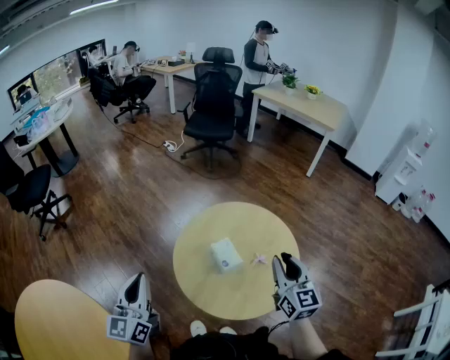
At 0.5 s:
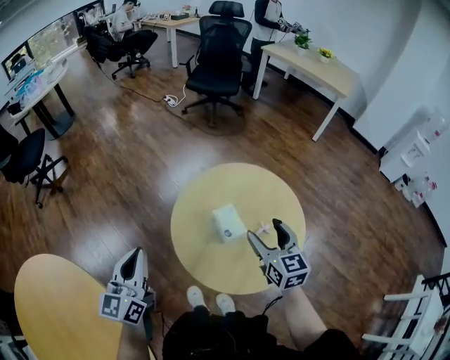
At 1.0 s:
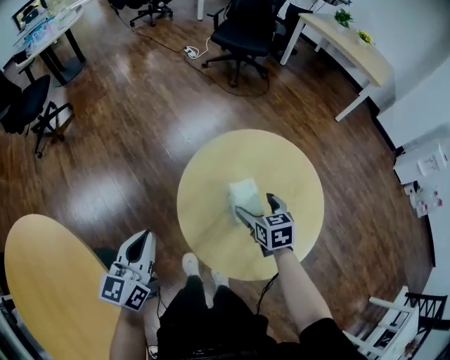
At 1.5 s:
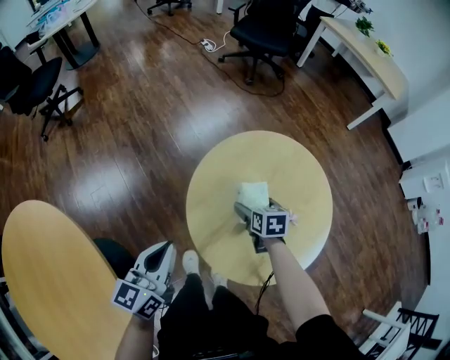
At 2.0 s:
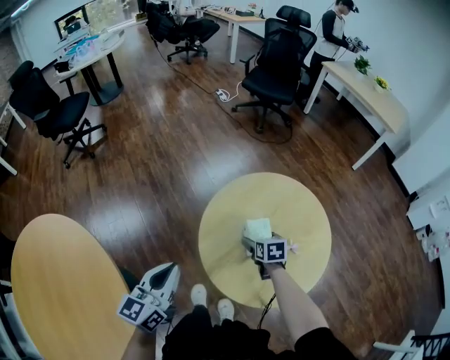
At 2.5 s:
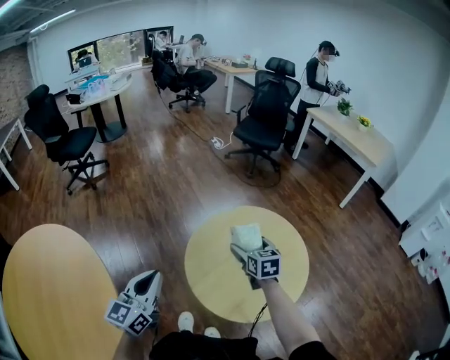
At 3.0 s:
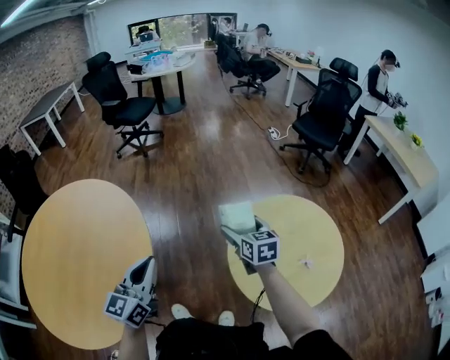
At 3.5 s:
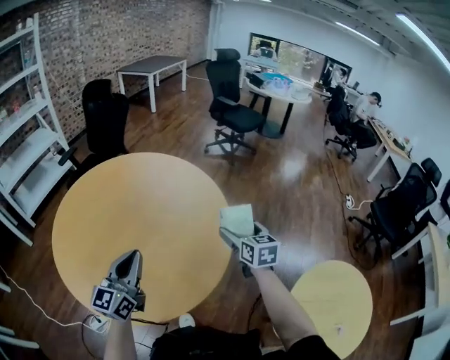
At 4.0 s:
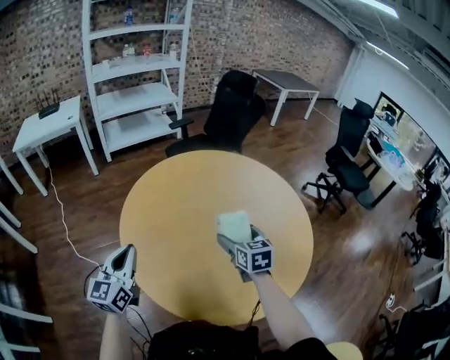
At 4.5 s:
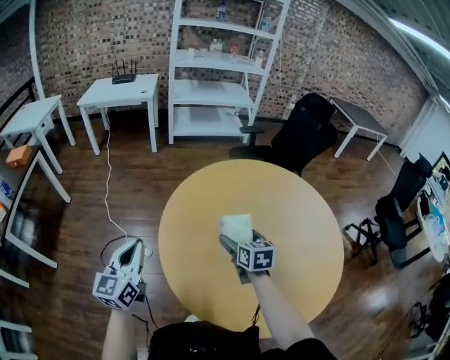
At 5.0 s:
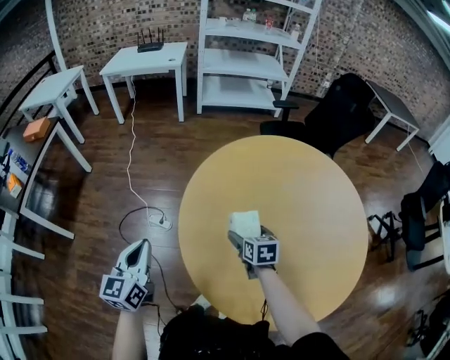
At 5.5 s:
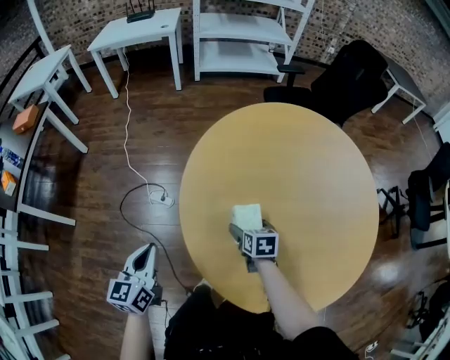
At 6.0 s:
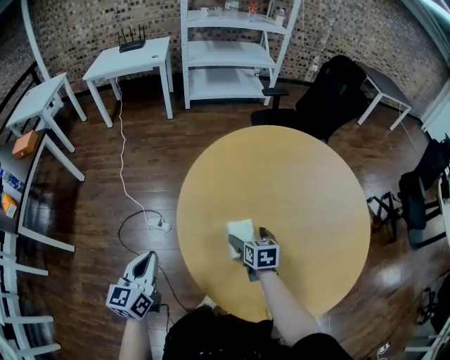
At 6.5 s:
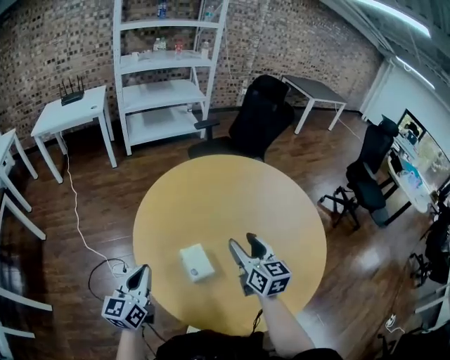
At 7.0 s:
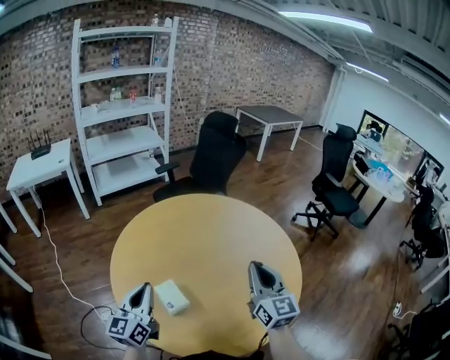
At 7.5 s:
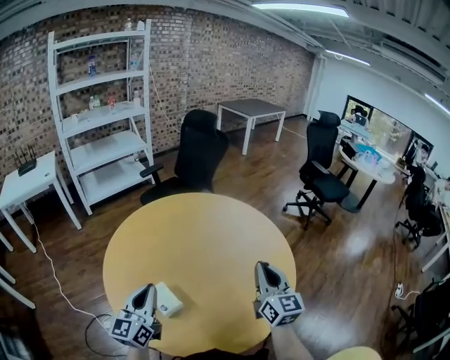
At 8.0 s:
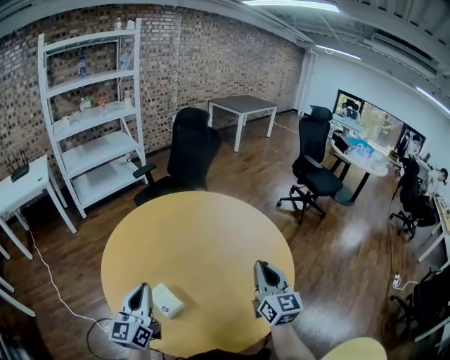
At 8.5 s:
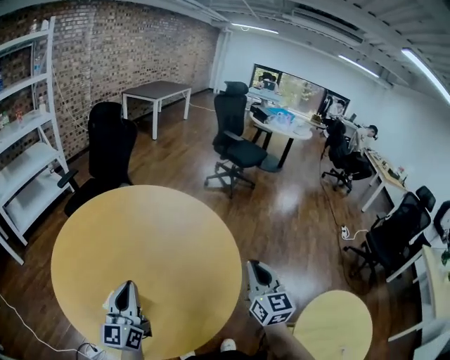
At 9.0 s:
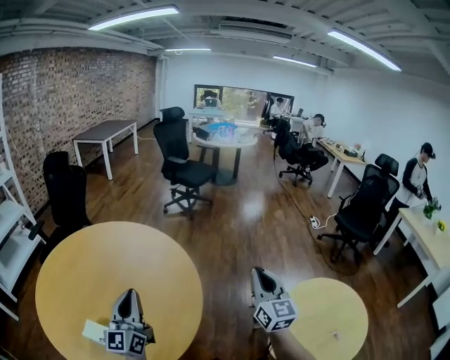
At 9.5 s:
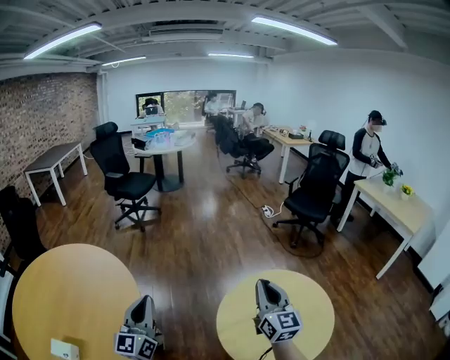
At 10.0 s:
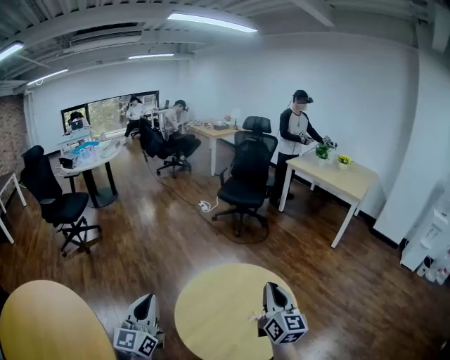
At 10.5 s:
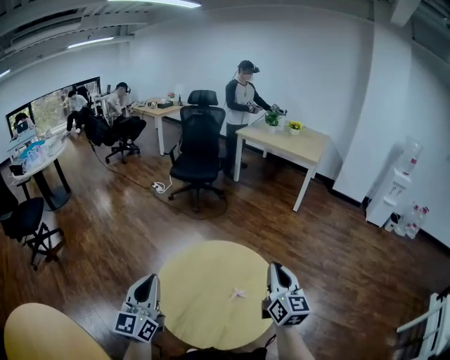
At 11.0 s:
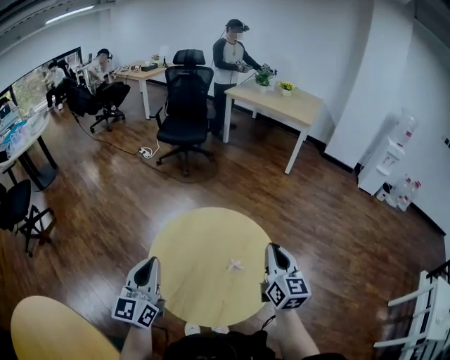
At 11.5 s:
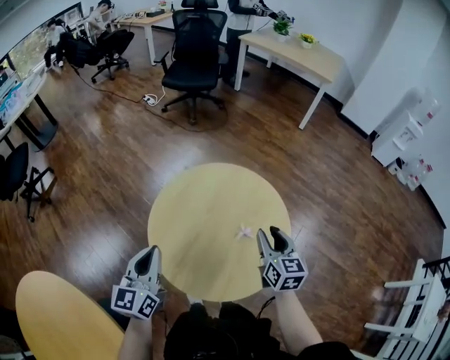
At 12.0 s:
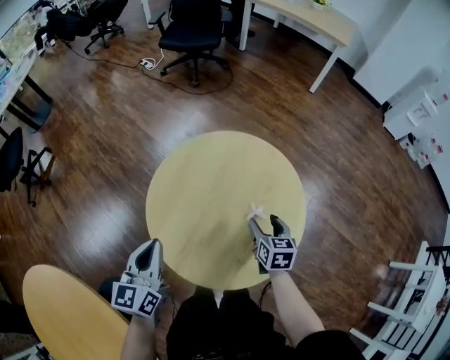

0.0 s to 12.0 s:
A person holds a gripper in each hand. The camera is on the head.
0.0 to 2.0 s: The right gripper heads downward and forward, covering about 30 cm, points its fingers roughly 50 degrees further downward, and opens, while the left gripper goes some 10 cm downward.
2.0 to 4.0 s: The two grippers travel together, approximately 80 cm. The right gripper changes its angle by approximately 100 degrees; the left gripper turns by some 110 degrees.
4.0 to 6.0 s: The left gripper moves about 20 cm, and rotates about 30 degrees, while the right gripper shifts by roughly 25 cm, and turns by some 30 degrees.
6.0 to 8.0 s: The right gripper moves approximately 40 cm, angles its fingers upward, by approximately 50 degrees, and closes up. Meanwhile the left gripper ends up approximately 25 cm from where it was, and rotates some 40 degrees.
8.0 to 10.0 s: Both grippers are carried roughly 70 cm. The left gripper rotates about 80 degrees, while the right gripper rotates roughly 90 degrees.
10.0 to 12.0 s: The left gripper is displaced downward and forward by roughly 20 cm, and changes its angle by about 40 degrees, while the right gripper is displaced downward by some 30 cm, tips its fingers downward by about 50 degrees, and opens.

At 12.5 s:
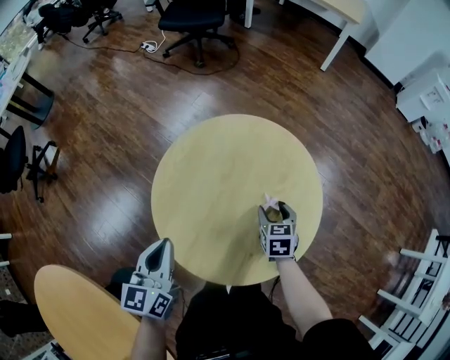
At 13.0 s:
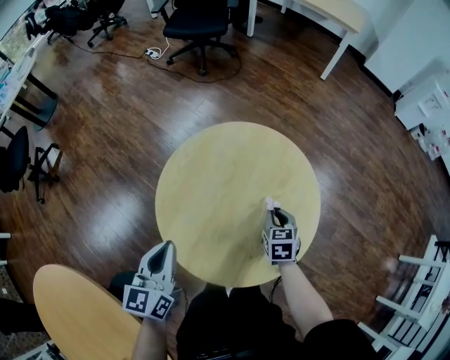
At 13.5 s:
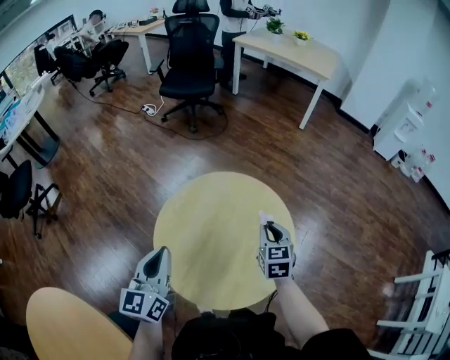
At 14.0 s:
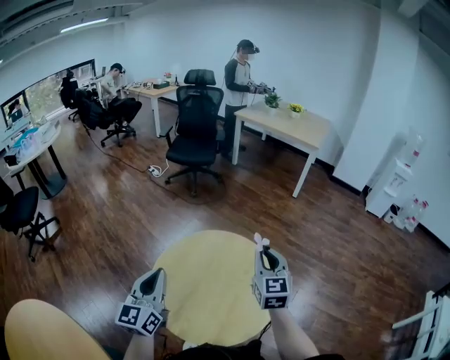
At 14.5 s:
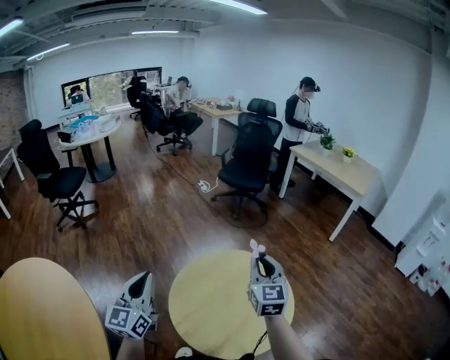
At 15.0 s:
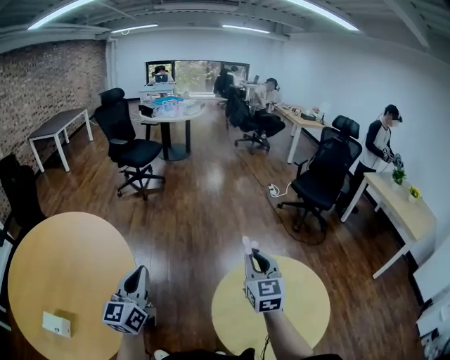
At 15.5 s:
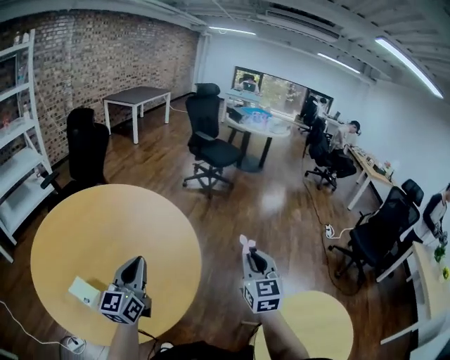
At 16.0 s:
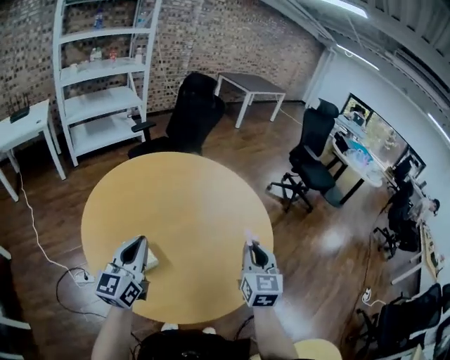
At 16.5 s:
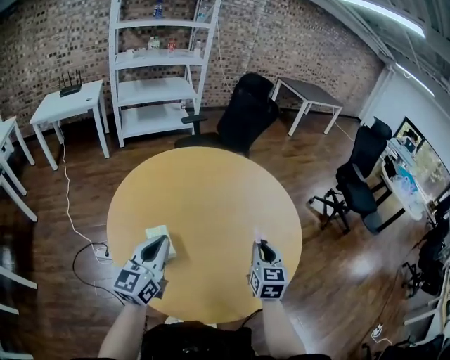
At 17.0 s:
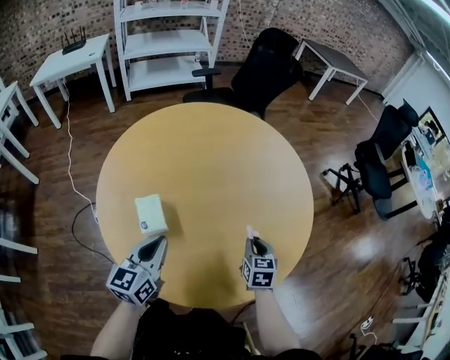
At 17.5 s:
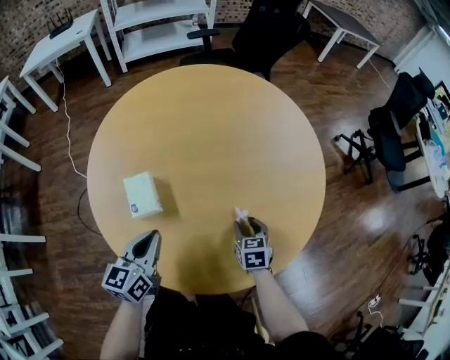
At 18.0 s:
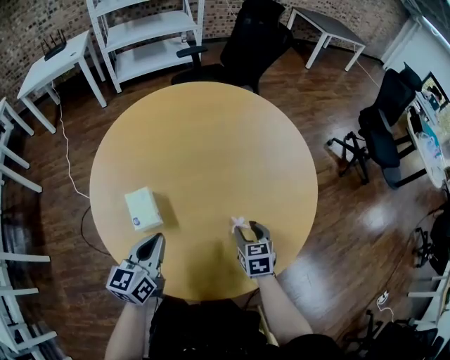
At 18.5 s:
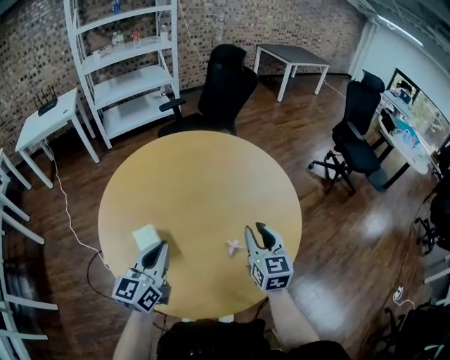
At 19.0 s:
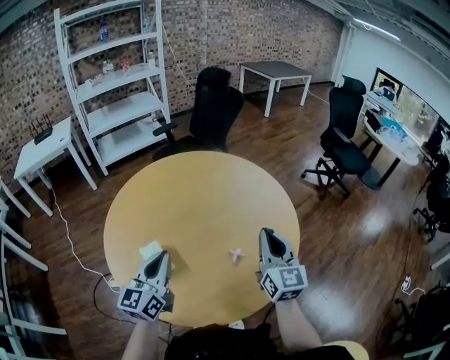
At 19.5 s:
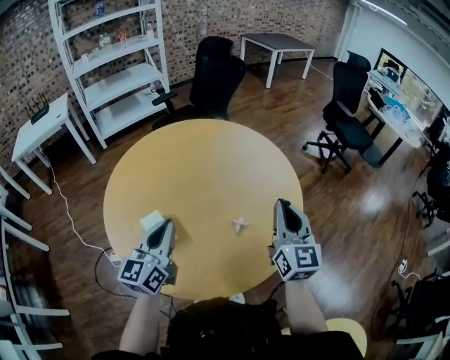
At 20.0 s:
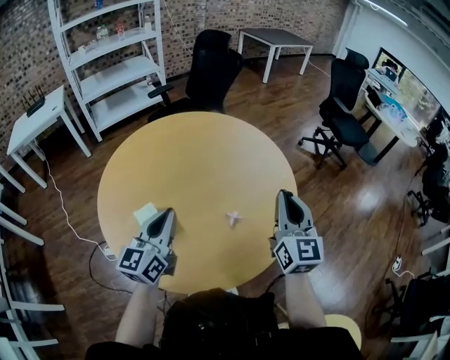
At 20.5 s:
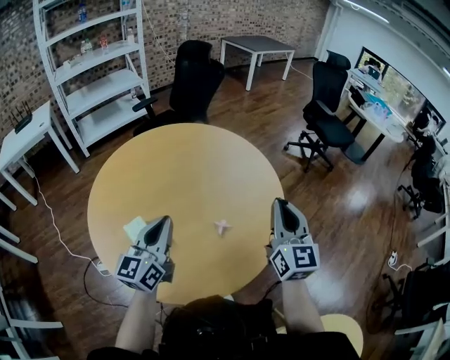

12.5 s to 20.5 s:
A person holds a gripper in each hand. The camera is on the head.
12.5 to 14.5 s: The right gripper moves upward, roughly 35 cm, tilts its fingers approximately 50 degrees upward, and closes up, while the left gripper goes approximately 20 cm upward, and rotates about 40 degrees.
14.5 to 16.5 s: The two grippers travel together, roughly 70 cm. The right gripper rotates roughly 100 degrees. The left gripper turns by approximately 90 degrees.
16.5 to 18.5 s: The right gripper goes downward and returns, approximately 25 cm each way. The left gripper travels downward and back again, approximately 15 cm each way.
18.5 to 20.5 s: The right gripper is displaced upward, to the right and backward by some 15 cm, and changes its angle by roughly 20 degrees.

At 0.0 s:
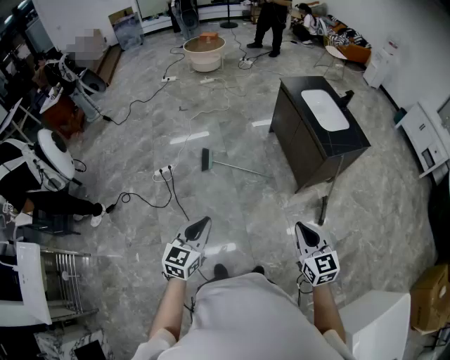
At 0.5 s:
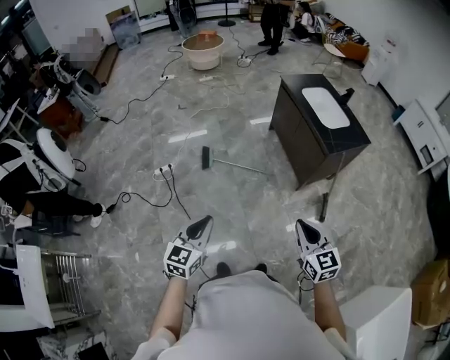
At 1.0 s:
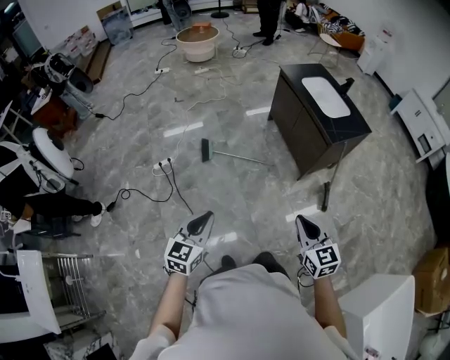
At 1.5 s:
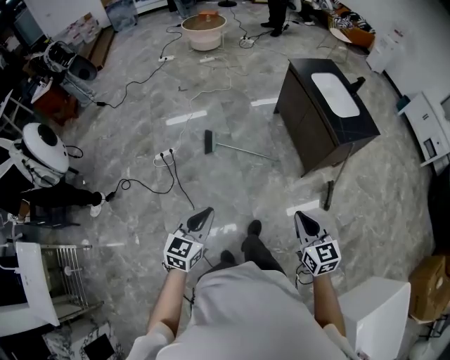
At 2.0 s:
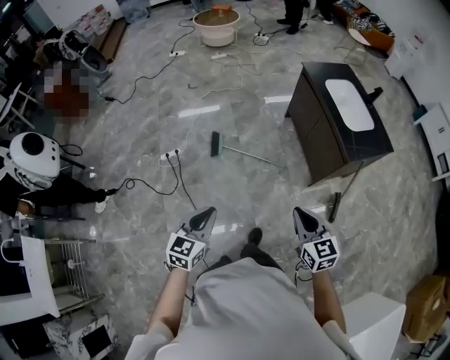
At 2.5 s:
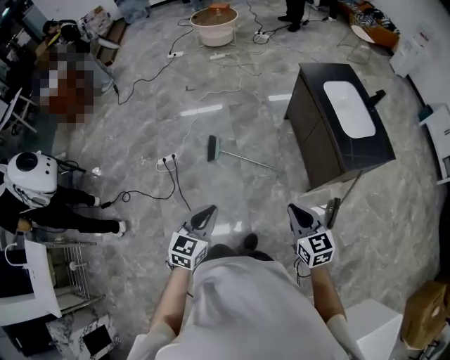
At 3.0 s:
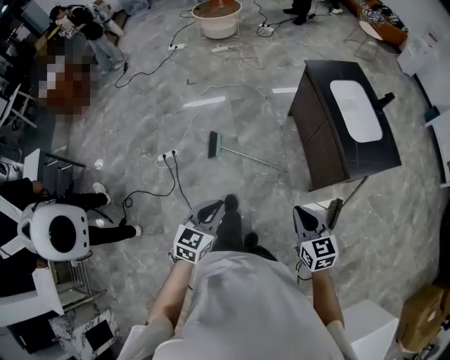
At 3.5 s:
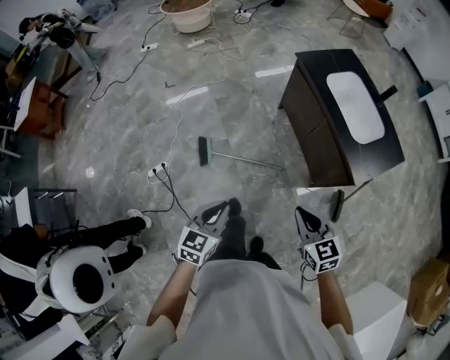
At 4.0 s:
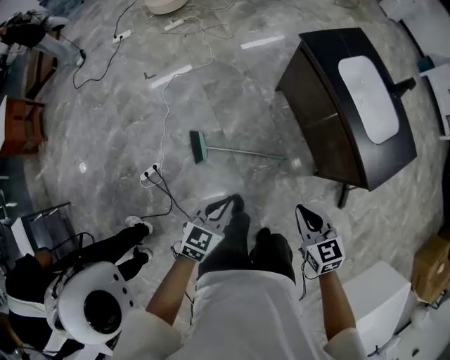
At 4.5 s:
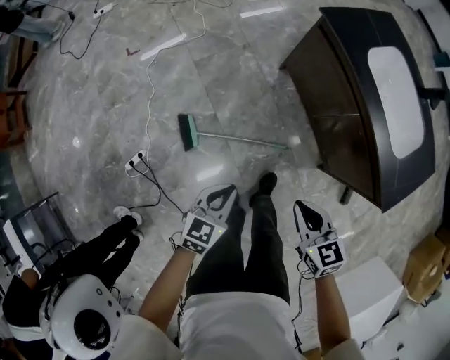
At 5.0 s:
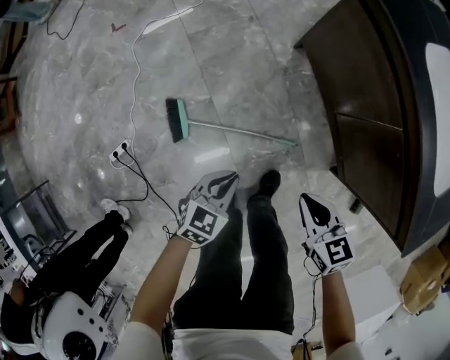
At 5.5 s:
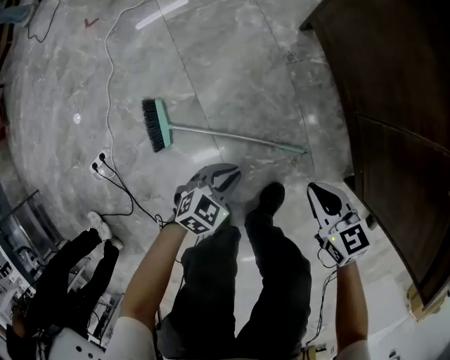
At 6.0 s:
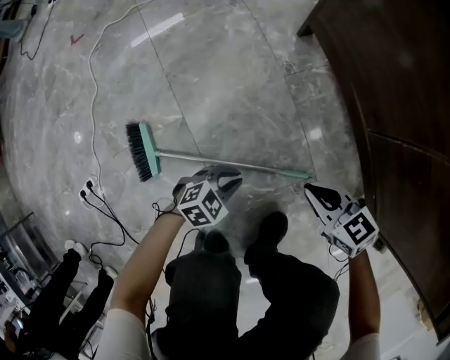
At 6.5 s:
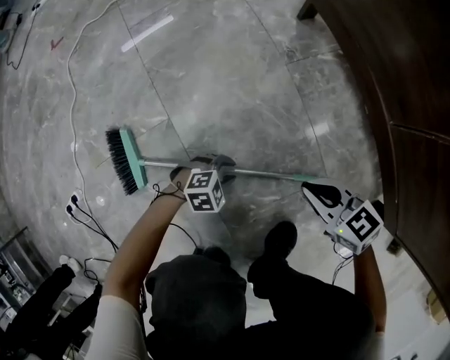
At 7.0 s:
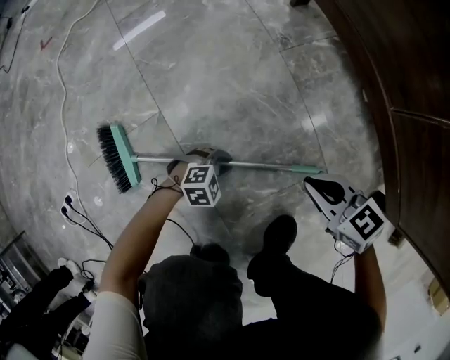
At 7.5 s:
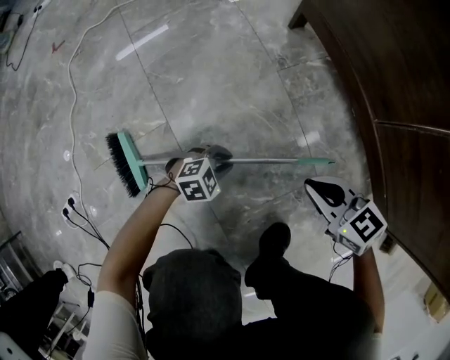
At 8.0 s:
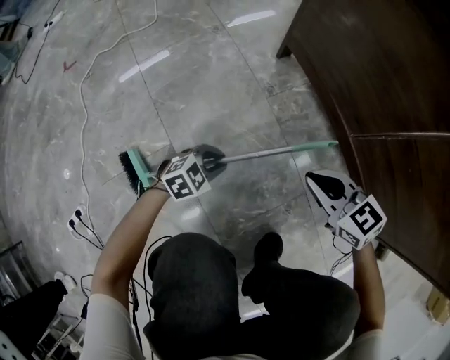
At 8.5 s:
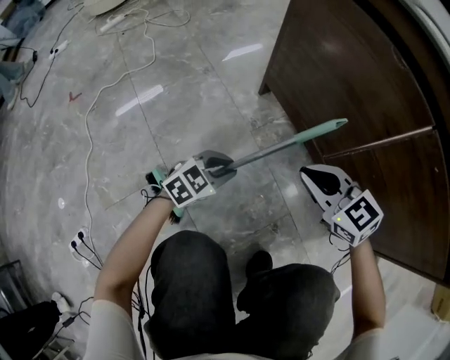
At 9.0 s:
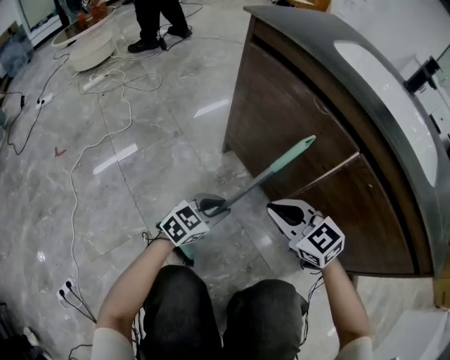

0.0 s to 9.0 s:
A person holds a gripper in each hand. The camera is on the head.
0.0 to 2.0 s: The left gripper moves forward and downward, some 15 cm. Meanwhile the right gripper is displaced forward by approximately 20 cm.
2.0 to 4.5 s: The pair of grippers is taken forward, approximately 50 cm. The grippers both shift downward by some 35 cm. The left gripper changes its angle by roughly 30 degrees, while the right gripper rotates some 20 degrees.
4.5 to 7.0 s: The two grippers go approximately 80 cm downward. The right gripper turns by about 20 degrees, while the left gripper swivels approximately 60 degrees.
7.0 to 9.0 s: Both grippers move upward, about 30 cm. The left gripper angles its fingers upward, by roughly 30 degrees, while the right gripper rotates about 30 degrees.
